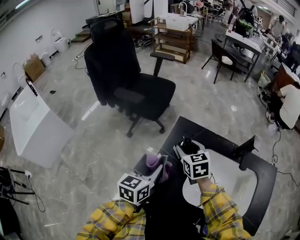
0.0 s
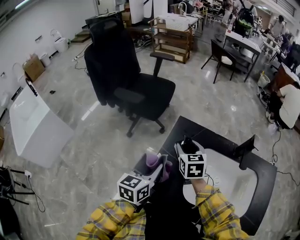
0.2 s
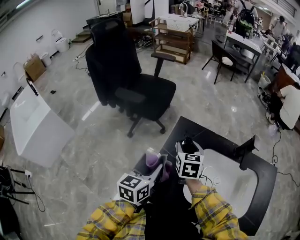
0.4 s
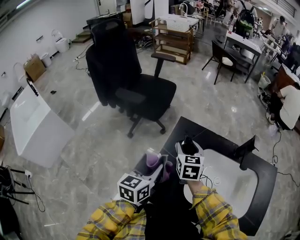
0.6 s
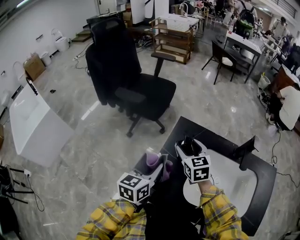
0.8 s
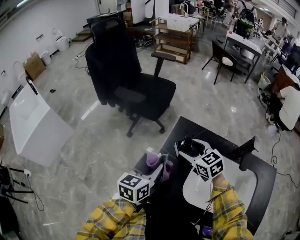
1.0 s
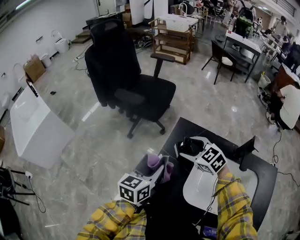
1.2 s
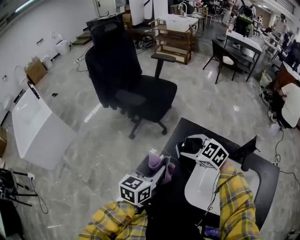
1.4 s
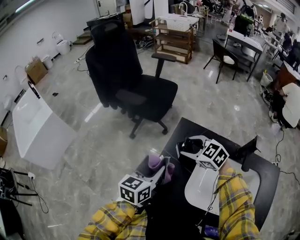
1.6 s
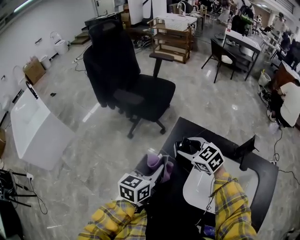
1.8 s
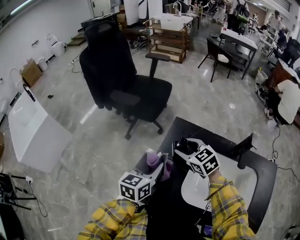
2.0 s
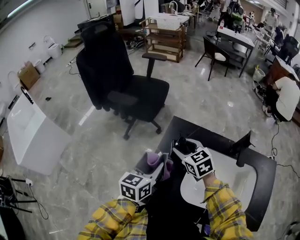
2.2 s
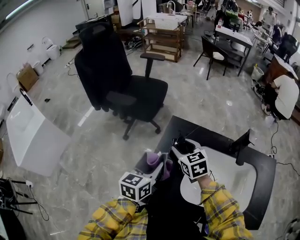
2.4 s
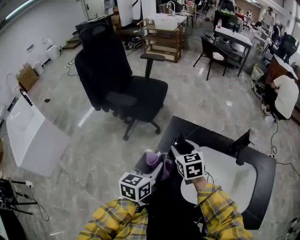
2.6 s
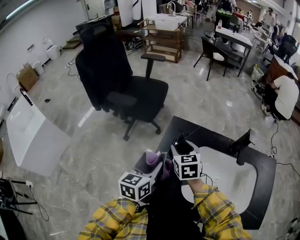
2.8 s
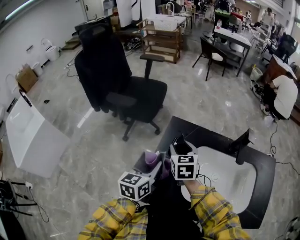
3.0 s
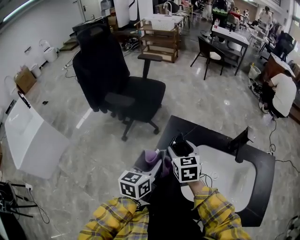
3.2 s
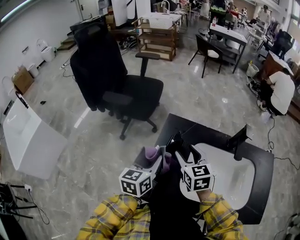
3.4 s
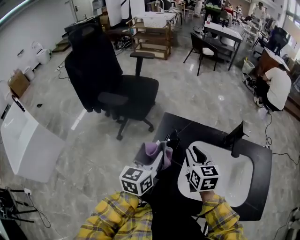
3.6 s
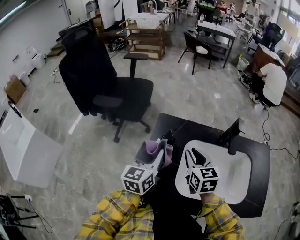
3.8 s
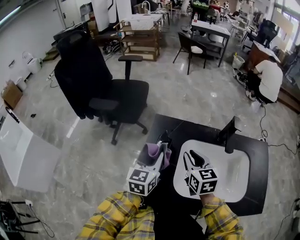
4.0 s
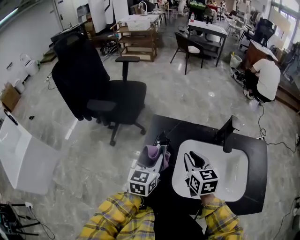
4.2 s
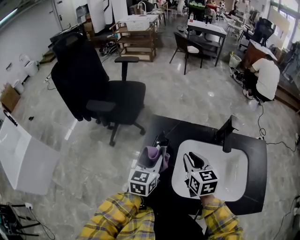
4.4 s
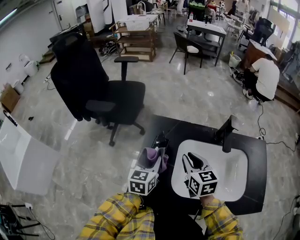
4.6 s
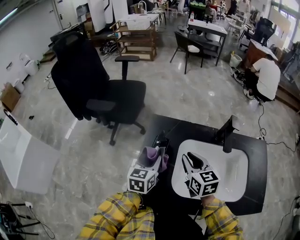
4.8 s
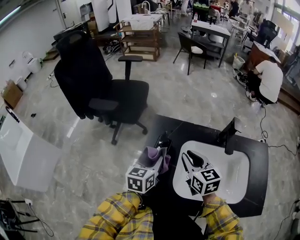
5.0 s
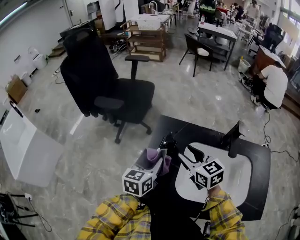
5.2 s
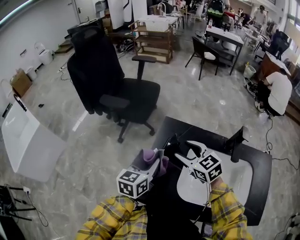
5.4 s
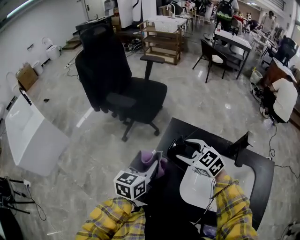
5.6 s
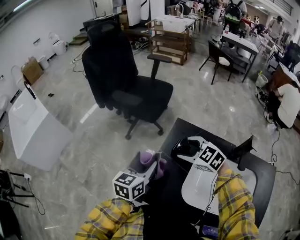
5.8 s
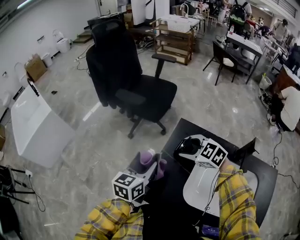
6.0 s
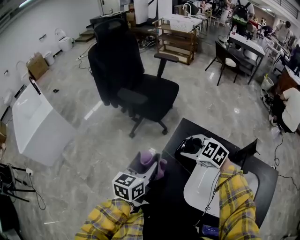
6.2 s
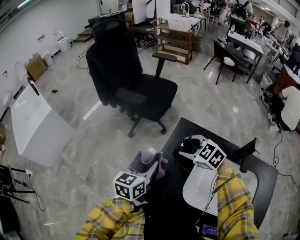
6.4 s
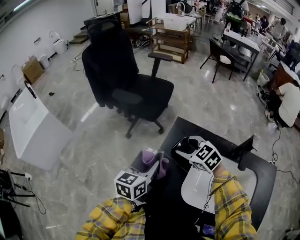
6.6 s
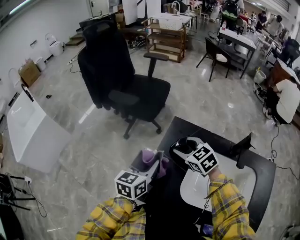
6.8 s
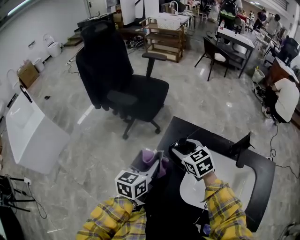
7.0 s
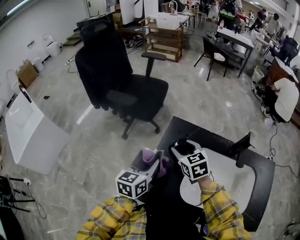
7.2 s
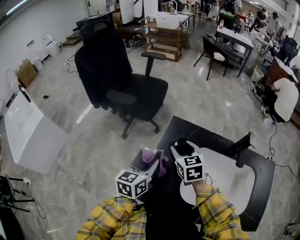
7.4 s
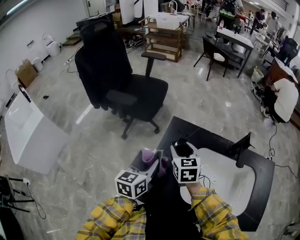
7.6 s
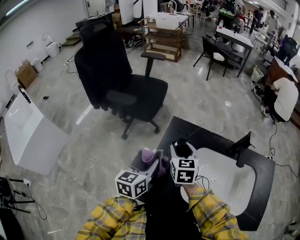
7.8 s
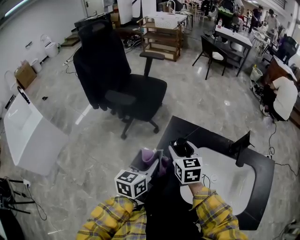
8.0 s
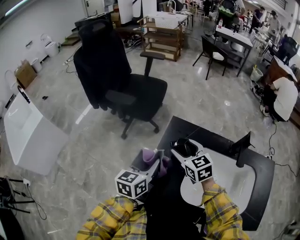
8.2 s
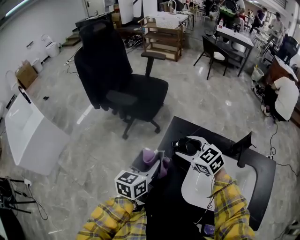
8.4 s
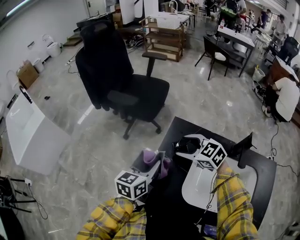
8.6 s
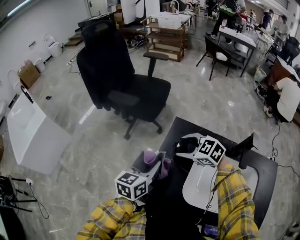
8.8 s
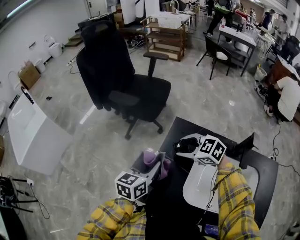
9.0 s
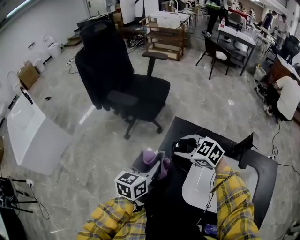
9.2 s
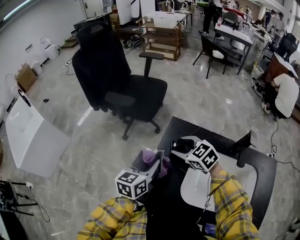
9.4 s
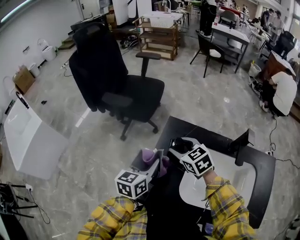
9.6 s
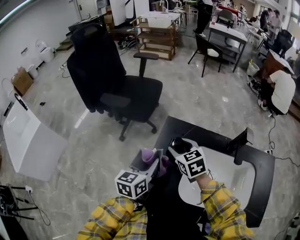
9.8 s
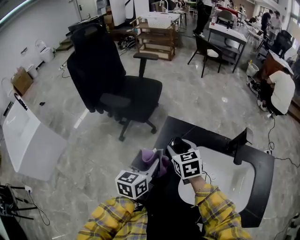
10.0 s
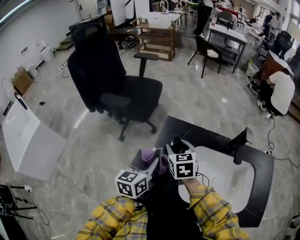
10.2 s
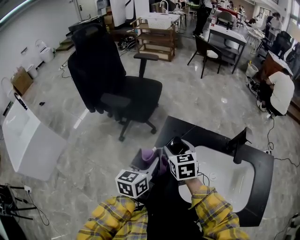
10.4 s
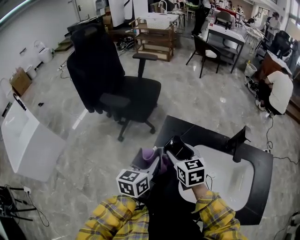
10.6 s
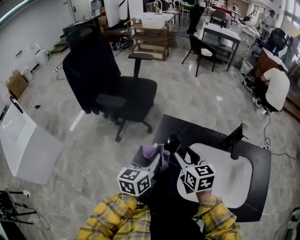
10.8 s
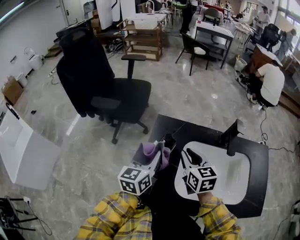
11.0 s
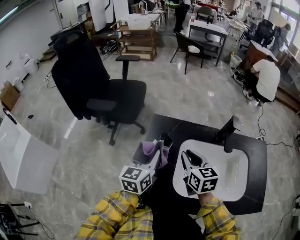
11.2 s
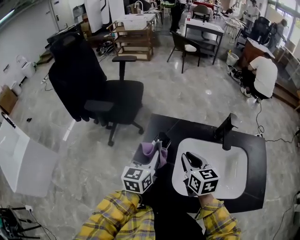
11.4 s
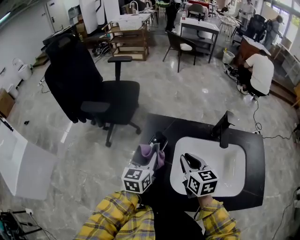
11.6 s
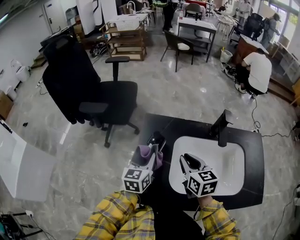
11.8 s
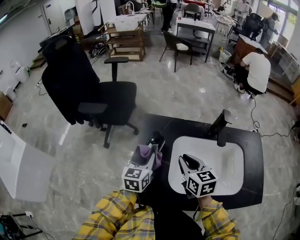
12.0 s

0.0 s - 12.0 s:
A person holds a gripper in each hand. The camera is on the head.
0.0 s - 1.6 s: The right gripper swivels some 40 degrees.
1.6 s - 3.0 s: The right gripper turns by about 50 degrees.
3.0 s - 4.4 s: The left gripper heads to the right, covering some 5 cm, while the right gripper shifts about 15 cm to the right and backward, and closes its fingers.
4.4 s - 6.0 s: The right gripper changes place by about 15 cm, rotates approximately 70 degrees, and opens. Meanwhile the left gripper ends up some 10 cm from where it was.
6.0 s - 7.6 s: The right gripper changes its angle by about 60 degrees.
7.6 s - 9.0 s: The right gripper changes its angle by about 60 degrees.
9.0 s - 10.4 s: The right gripper turns by some 50 degrees.
10.4 s - 12.0 s: The left gripper travels to the right by approximately 5 cm. Meanwhile the right gripper shifts approximately 15 cm to the right and backward, and closes.

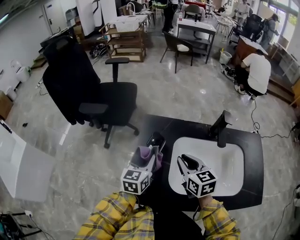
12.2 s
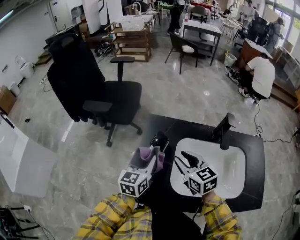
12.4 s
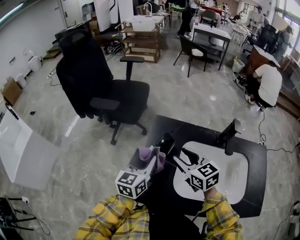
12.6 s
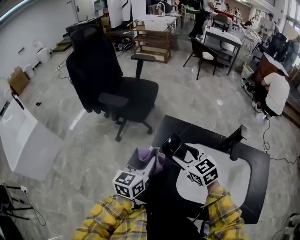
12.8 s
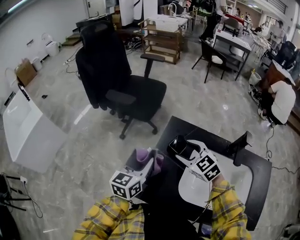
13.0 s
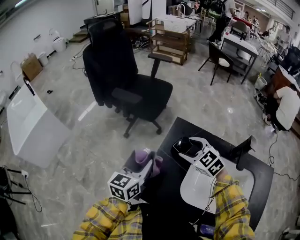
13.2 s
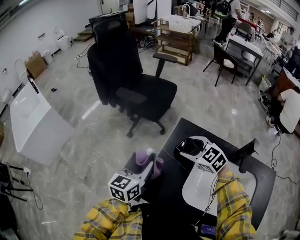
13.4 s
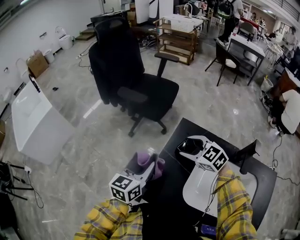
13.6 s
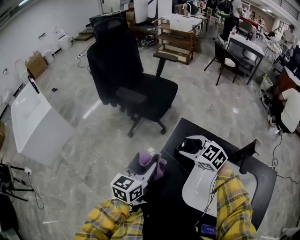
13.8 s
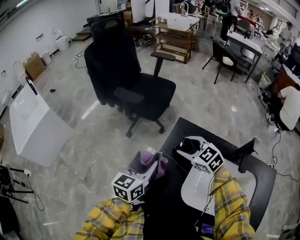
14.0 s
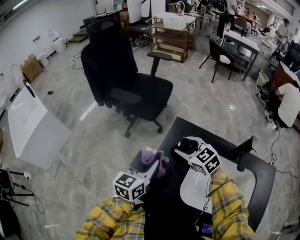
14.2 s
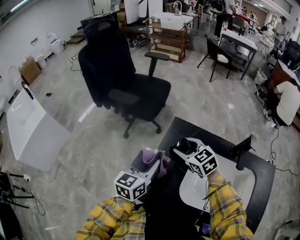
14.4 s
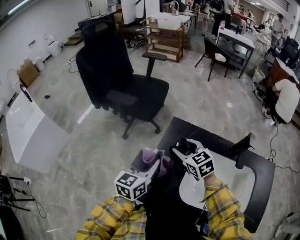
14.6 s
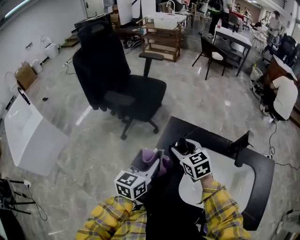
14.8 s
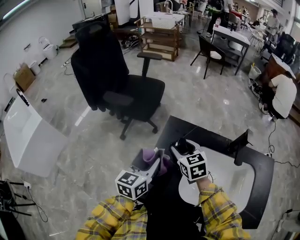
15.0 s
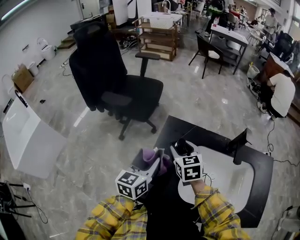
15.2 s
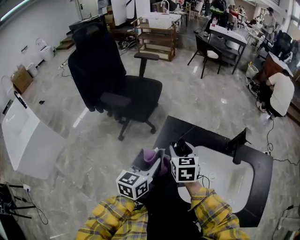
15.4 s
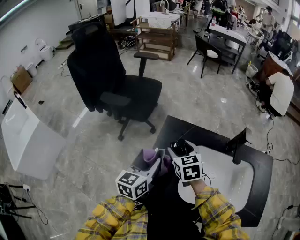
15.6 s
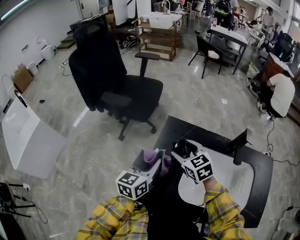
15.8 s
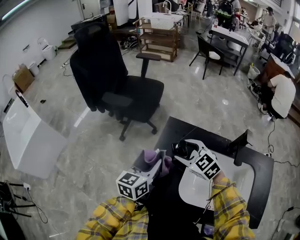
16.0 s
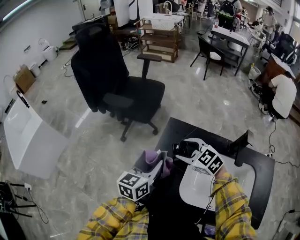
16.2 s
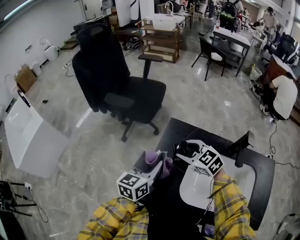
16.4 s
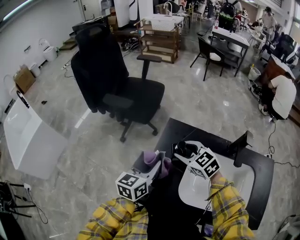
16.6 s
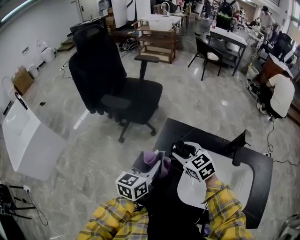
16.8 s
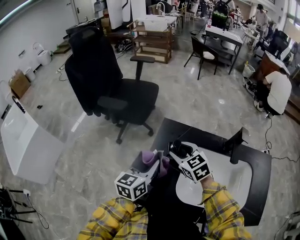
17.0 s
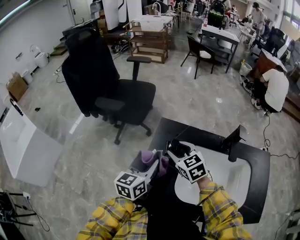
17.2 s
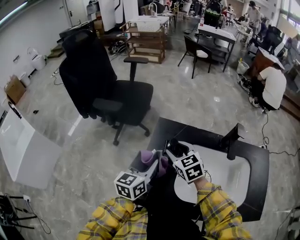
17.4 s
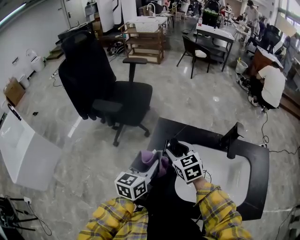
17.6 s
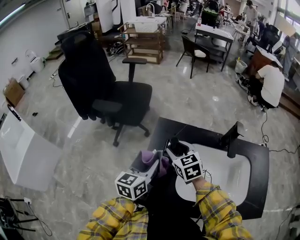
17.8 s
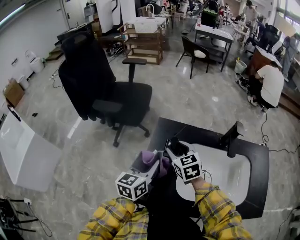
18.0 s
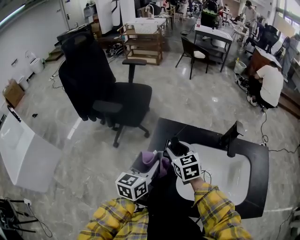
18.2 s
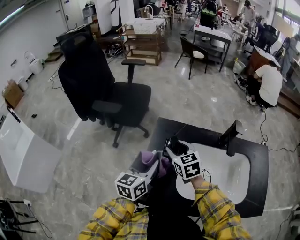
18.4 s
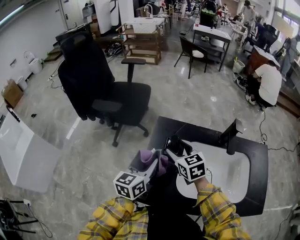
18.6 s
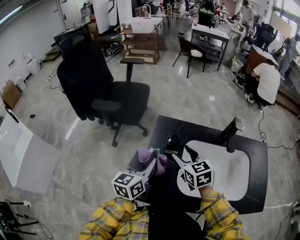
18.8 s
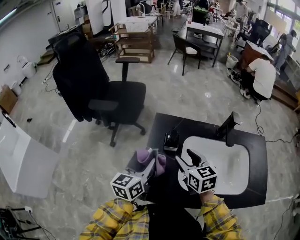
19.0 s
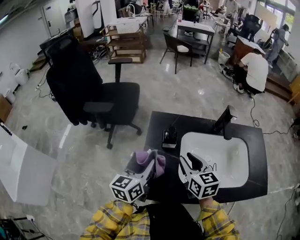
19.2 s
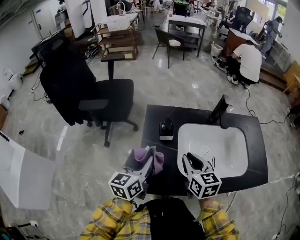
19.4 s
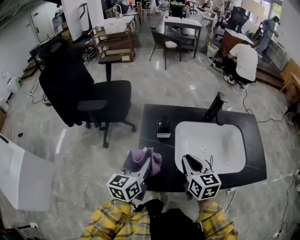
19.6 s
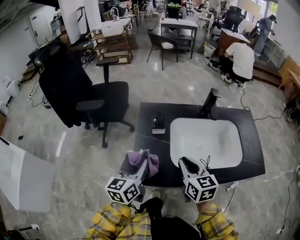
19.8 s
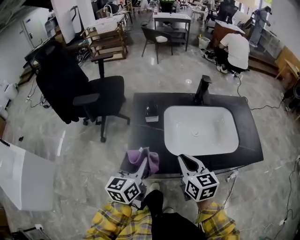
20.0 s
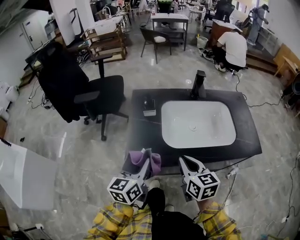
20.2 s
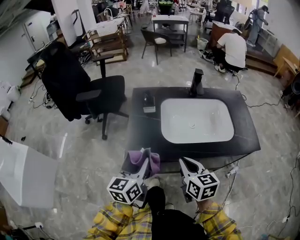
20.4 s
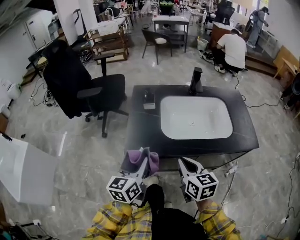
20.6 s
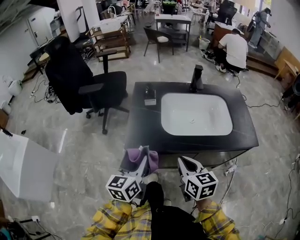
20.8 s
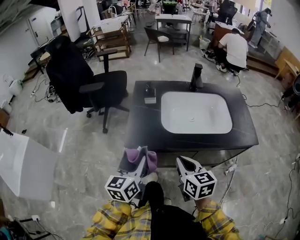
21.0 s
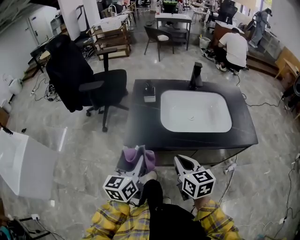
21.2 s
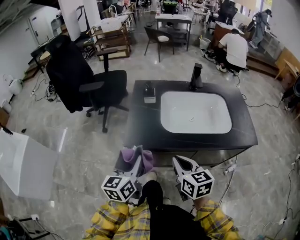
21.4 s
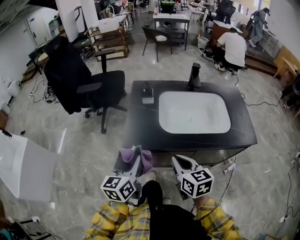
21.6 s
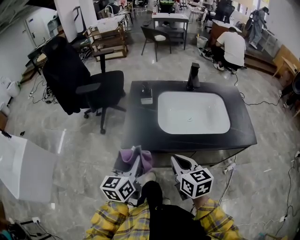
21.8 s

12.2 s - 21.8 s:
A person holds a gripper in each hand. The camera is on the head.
12.2 s - 13.8 s: The left gripper moves about 10 cm. The right gripper shifts by approximately 15 cm, rotates approximately 60 degrees, and opens.
13.8 s - 15.4 s: The right gripper swivels about 60 degrees, while the left gripper changes place by approximately 5 cm.
15.4 s - 17.0 s: The right gripper changes its angle by roughly 30 degrees.
17.0 s - 18.6 s: The grippers move only a little.
18.6 s - 20.2 s: Both grippers move backward, approximately 25 cm. The right gripper changes its angle by some 30 degrees, and closes.
20.2 s - 21.8 s: Both grippers move backward, roughly 10 cm.

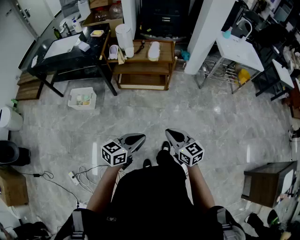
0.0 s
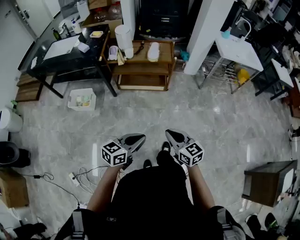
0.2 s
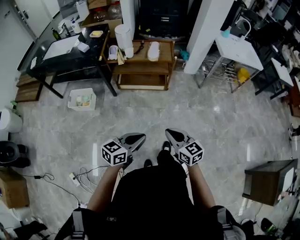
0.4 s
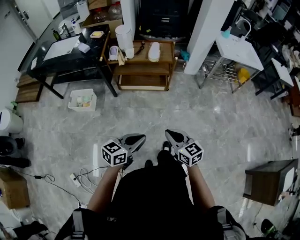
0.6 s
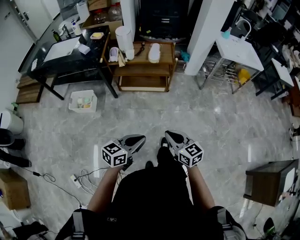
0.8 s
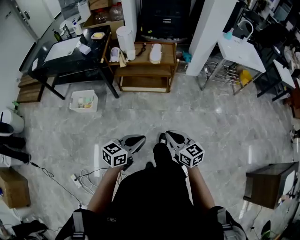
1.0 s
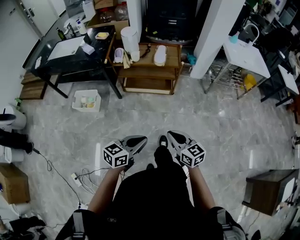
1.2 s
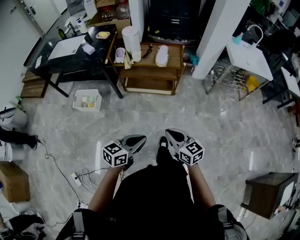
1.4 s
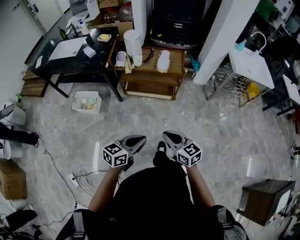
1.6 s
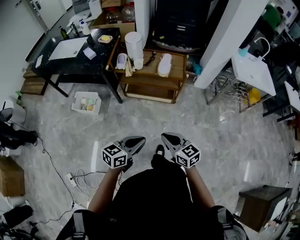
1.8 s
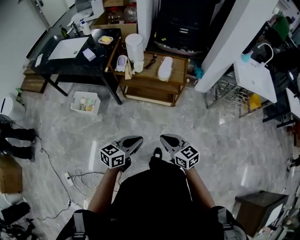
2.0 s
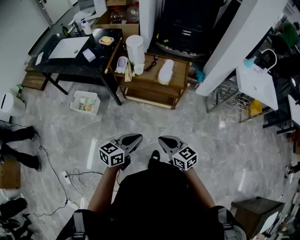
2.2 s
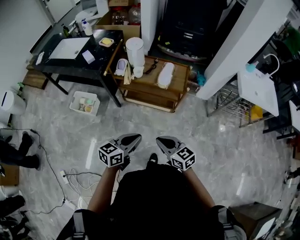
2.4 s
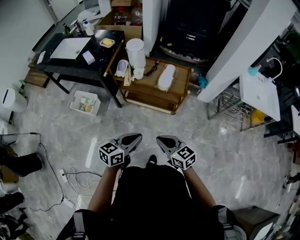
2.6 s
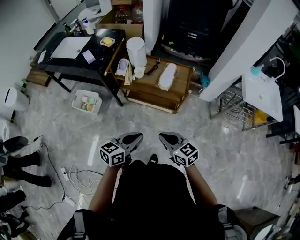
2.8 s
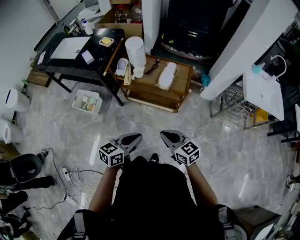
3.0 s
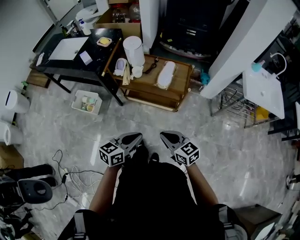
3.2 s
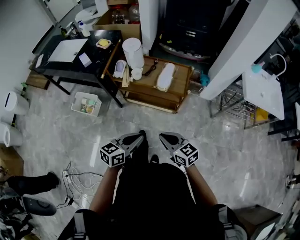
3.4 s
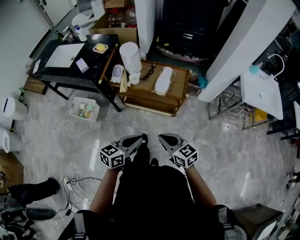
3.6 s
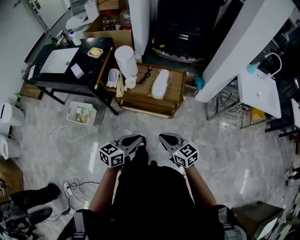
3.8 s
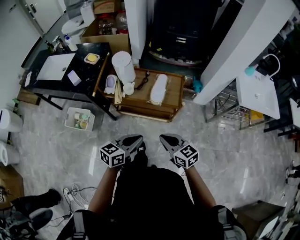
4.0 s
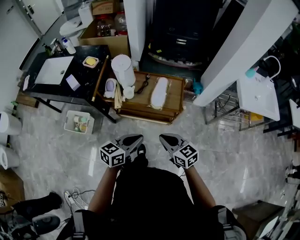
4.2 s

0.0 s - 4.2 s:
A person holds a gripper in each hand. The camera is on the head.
0.0 s - 1.4 s: Both grippers travel together forward, about 5 cm.
1.4 s - 2.8 s: Both grippers travel together forward, about 20 cm.
2.8 s - 4.2 s: The two grippers go some 15 cm forward.
